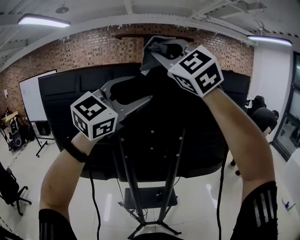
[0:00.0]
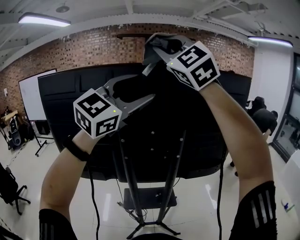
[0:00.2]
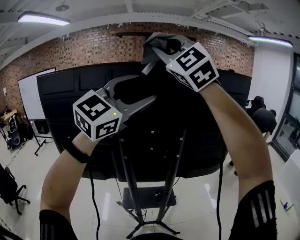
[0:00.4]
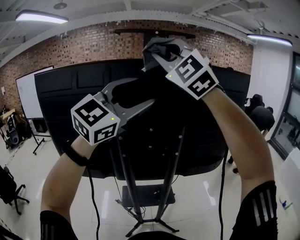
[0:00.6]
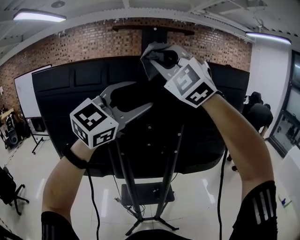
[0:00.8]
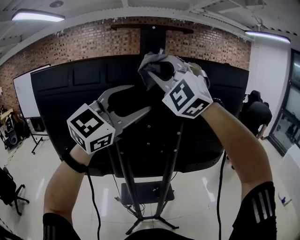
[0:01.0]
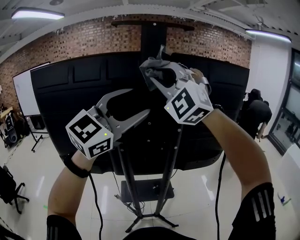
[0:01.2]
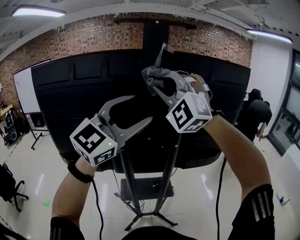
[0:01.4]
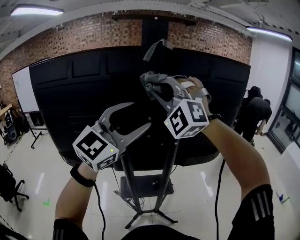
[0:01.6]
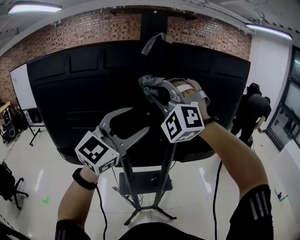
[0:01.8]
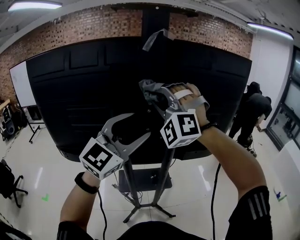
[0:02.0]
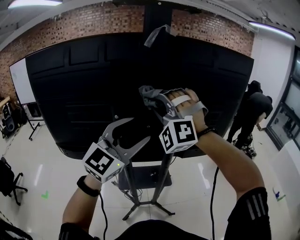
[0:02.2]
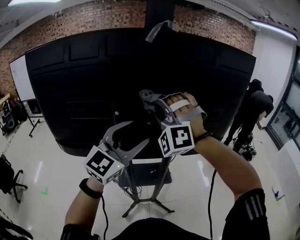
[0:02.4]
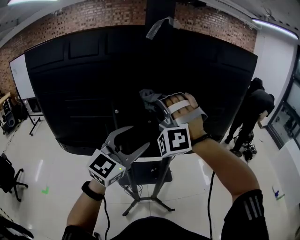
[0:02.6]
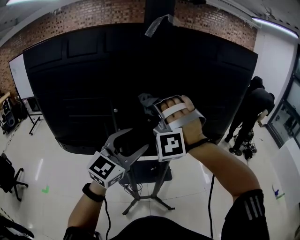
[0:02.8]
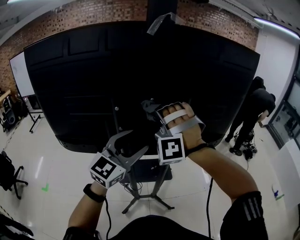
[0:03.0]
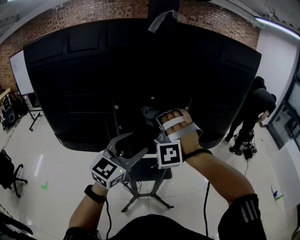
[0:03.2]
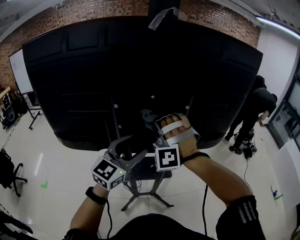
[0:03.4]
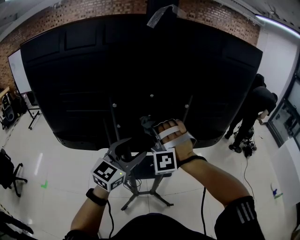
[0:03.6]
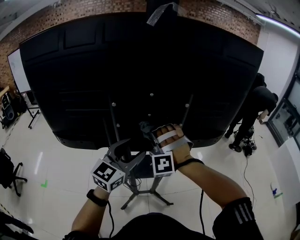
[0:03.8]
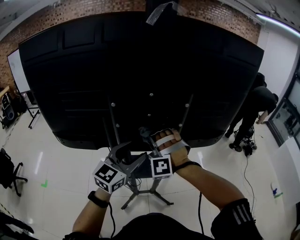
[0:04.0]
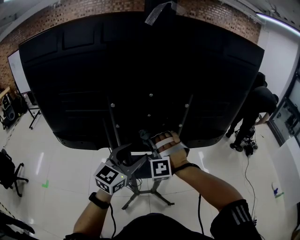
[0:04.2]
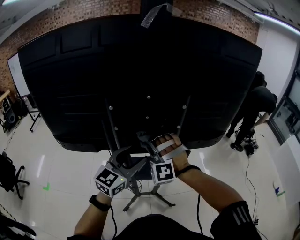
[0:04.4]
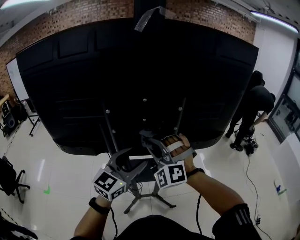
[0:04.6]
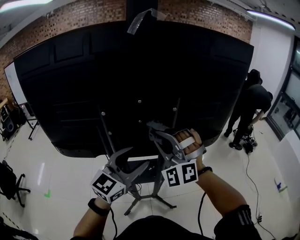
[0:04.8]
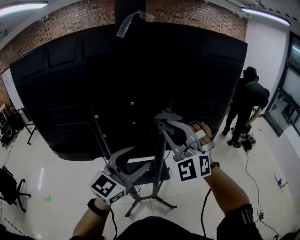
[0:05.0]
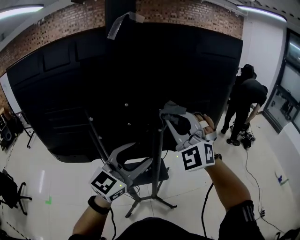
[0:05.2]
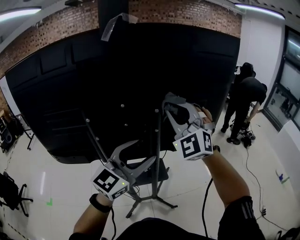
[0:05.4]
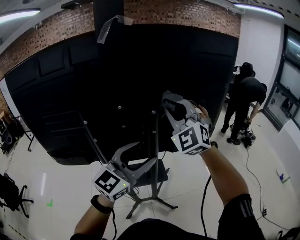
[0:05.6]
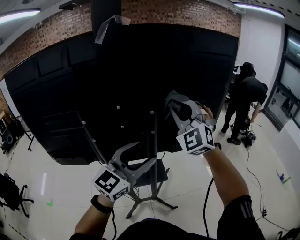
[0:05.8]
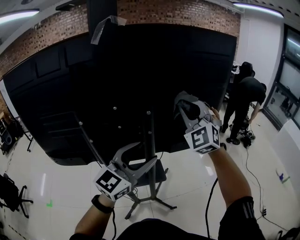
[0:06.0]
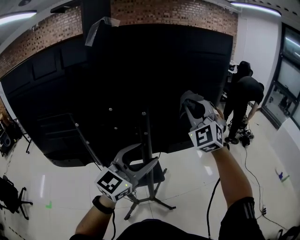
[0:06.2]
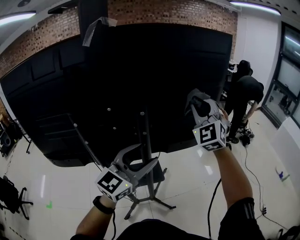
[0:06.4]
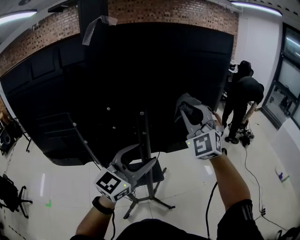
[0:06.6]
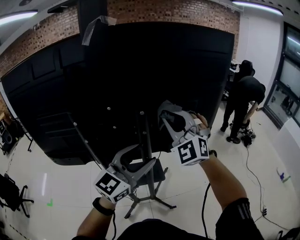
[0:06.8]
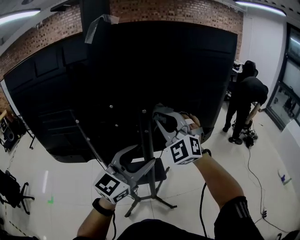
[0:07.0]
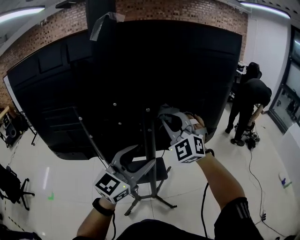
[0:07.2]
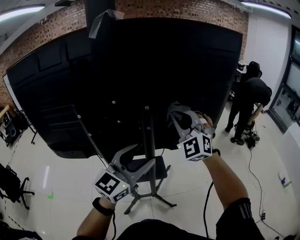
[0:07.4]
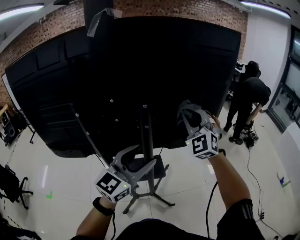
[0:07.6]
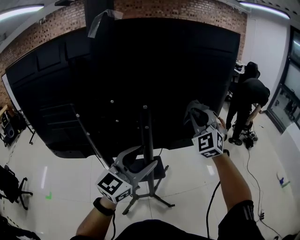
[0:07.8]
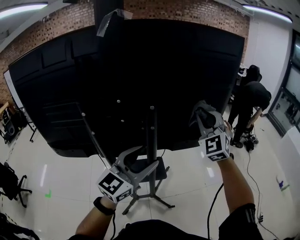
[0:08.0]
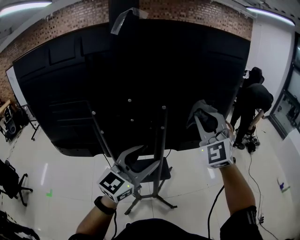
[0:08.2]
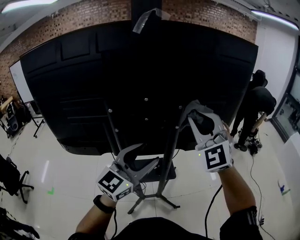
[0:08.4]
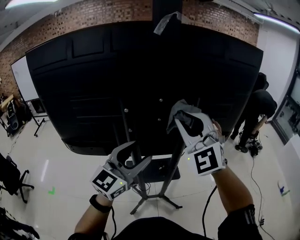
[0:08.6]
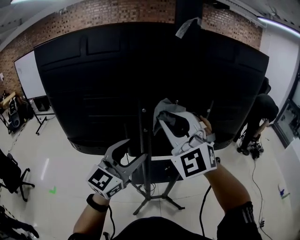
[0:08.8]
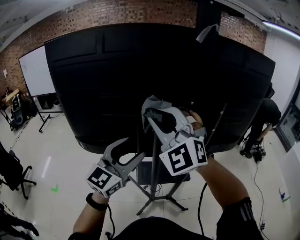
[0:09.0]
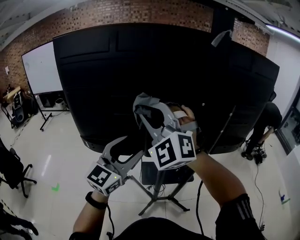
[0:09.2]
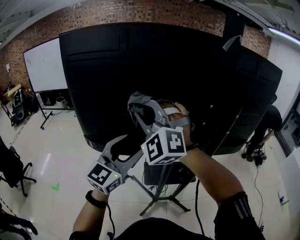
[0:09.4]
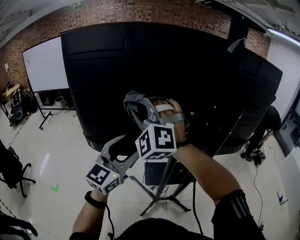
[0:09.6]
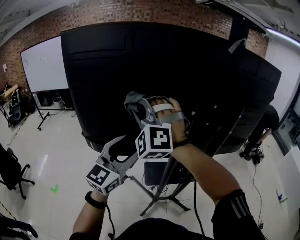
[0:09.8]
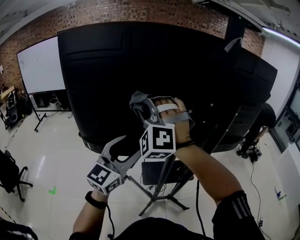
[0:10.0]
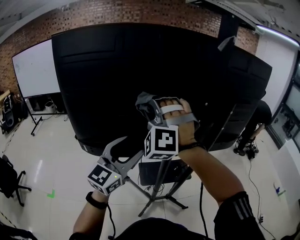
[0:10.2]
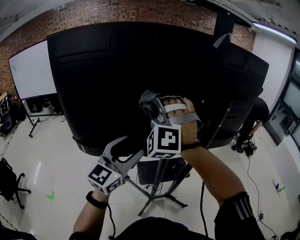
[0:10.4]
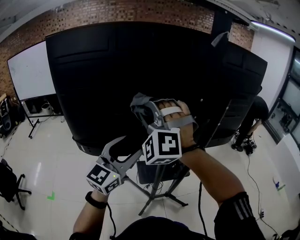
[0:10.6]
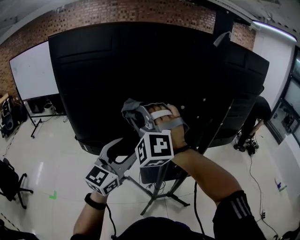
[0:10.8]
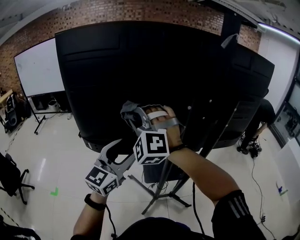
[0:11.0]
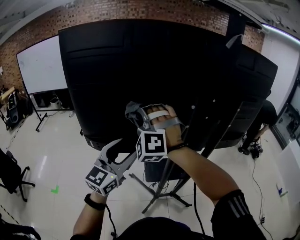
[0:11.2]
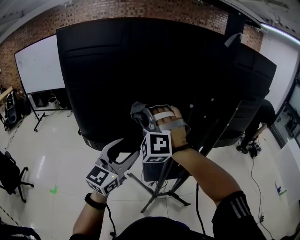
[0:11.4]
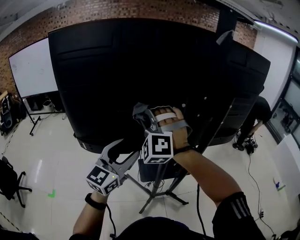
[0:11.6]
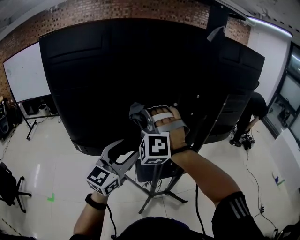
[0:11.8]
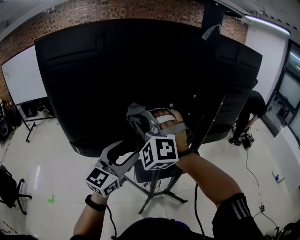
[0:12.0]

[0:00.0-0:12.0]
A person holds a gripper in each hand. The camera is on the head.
0:00.0 to 0:01.6: The left gripper heads downward, covering about 10 cm. Meanwhile the right gripper goes approximately 15 cm downward, and changes its angle by approximately 30 degrees.
0:01.6 to 0:03.0: The grippers both shift downward by roughly 15 cm. The right gripper turns by roughly 20 degrees.
0:03.0 to 0:04.4: The left gripper travels downward by some 10 cm. Meanwhile the right gripper travels downward by roughly 15 cm.
0:04.4 to 0:06.0: The right gripper travels to the right, upward and forward by roughly 30 cm, and changes its angle by some 40 degrees; the left gripper goes some 15 cm to the right and upward.
0:06.0 to 0:07.6: The right gripper goes left and right, roughly 15 cm each way, reversing 2 times.
0:07.6 to 0:09.0: The left gripper travels to the left by approximately 30 cm, while the right gripper moves to the left and backward, approximately 40 cm, and swivels roughly 20 degrees.
0:09.0 to 0:10.4: The left gripper moves to the left, roughly 10 cm. Meanwhile the right gripper goes roughly 10 cm to the left and forward, and swivels some 40 degrees.
0:10.4 to 0:12.0: The right gripper moves some 10 cm to the left and comes back.

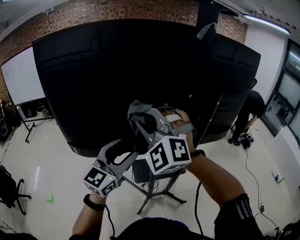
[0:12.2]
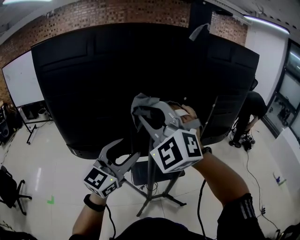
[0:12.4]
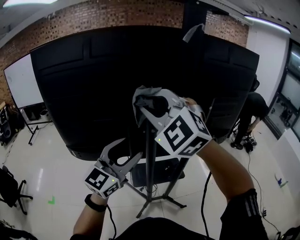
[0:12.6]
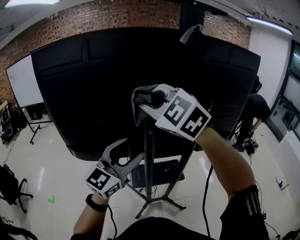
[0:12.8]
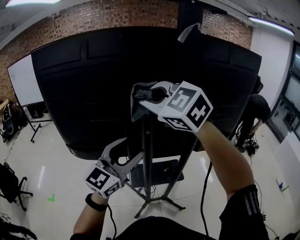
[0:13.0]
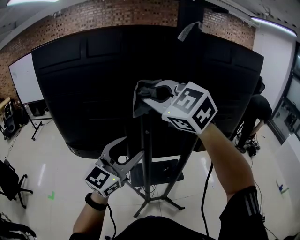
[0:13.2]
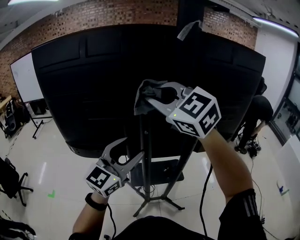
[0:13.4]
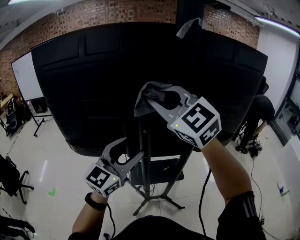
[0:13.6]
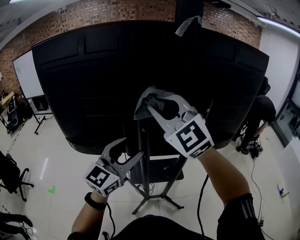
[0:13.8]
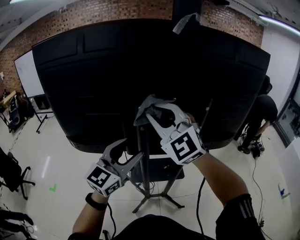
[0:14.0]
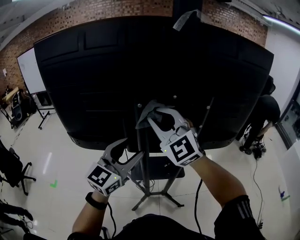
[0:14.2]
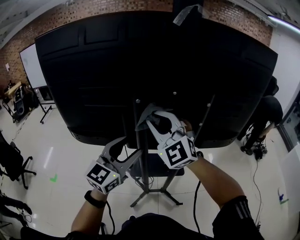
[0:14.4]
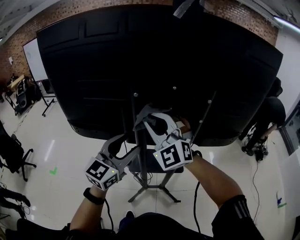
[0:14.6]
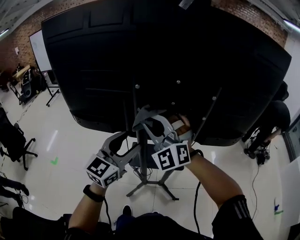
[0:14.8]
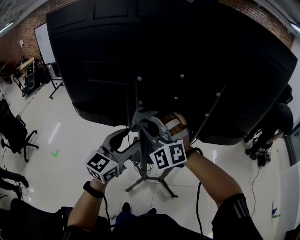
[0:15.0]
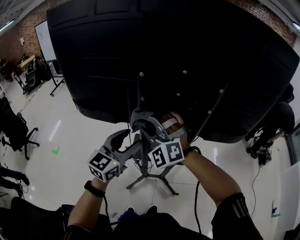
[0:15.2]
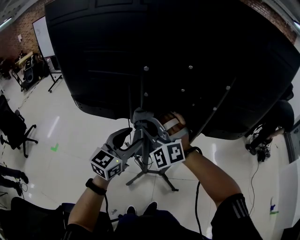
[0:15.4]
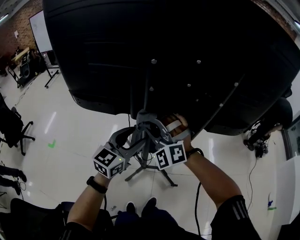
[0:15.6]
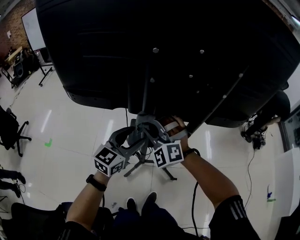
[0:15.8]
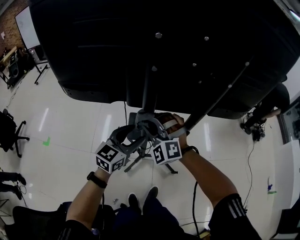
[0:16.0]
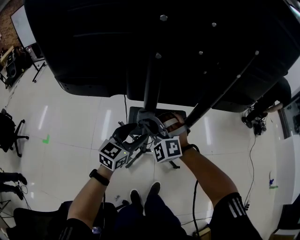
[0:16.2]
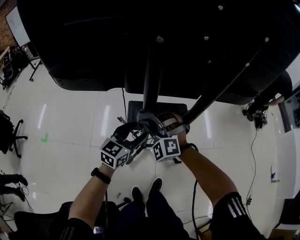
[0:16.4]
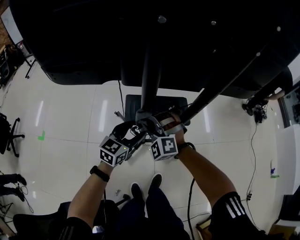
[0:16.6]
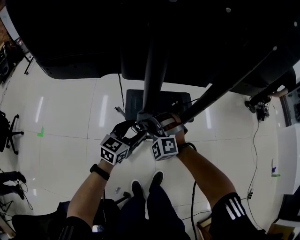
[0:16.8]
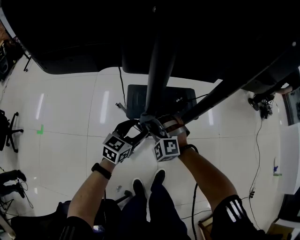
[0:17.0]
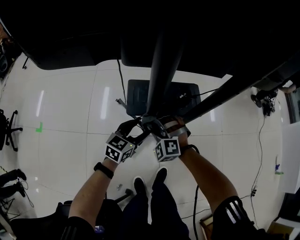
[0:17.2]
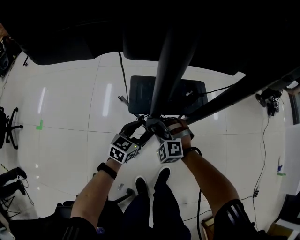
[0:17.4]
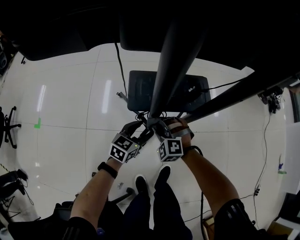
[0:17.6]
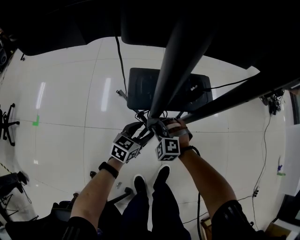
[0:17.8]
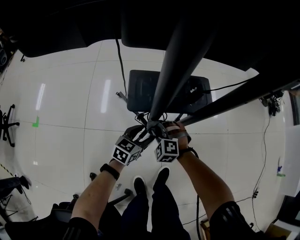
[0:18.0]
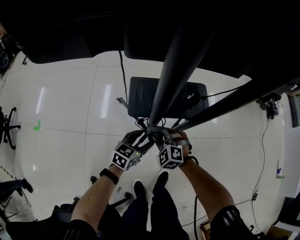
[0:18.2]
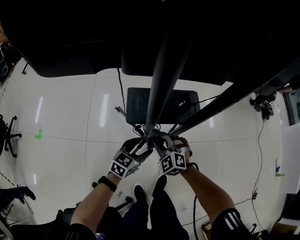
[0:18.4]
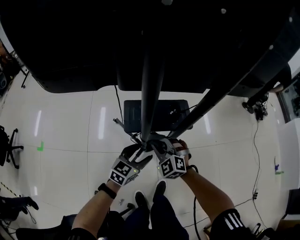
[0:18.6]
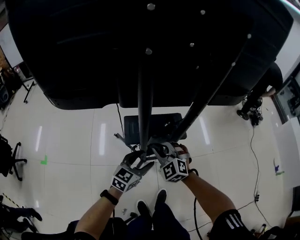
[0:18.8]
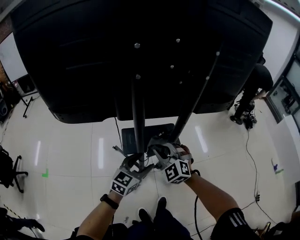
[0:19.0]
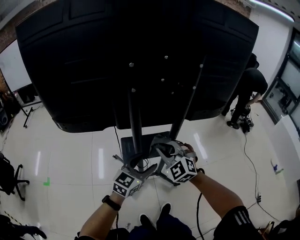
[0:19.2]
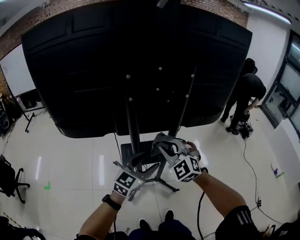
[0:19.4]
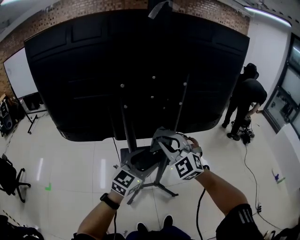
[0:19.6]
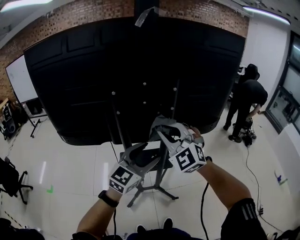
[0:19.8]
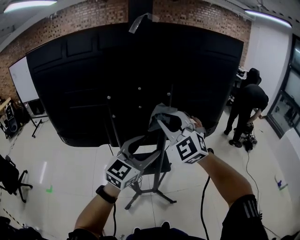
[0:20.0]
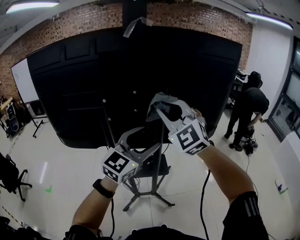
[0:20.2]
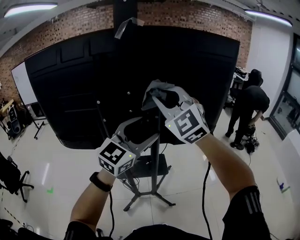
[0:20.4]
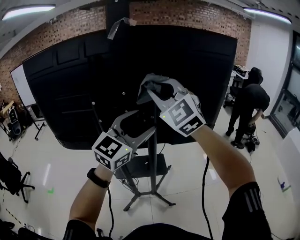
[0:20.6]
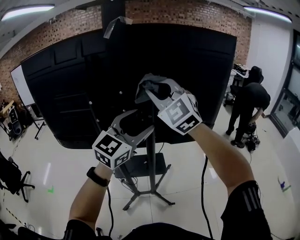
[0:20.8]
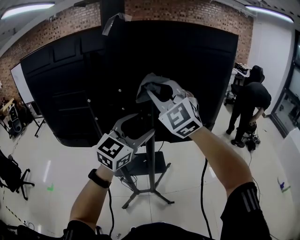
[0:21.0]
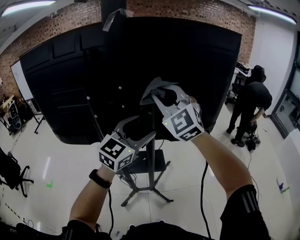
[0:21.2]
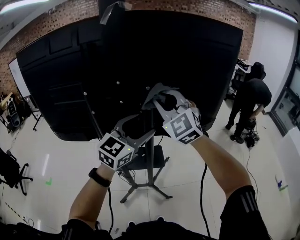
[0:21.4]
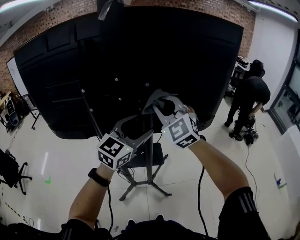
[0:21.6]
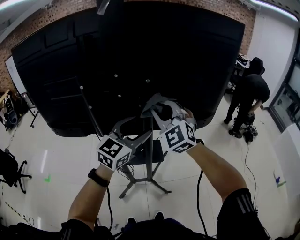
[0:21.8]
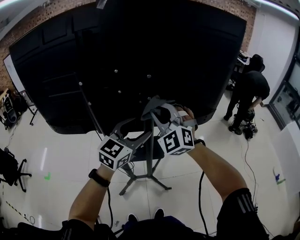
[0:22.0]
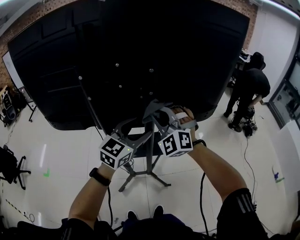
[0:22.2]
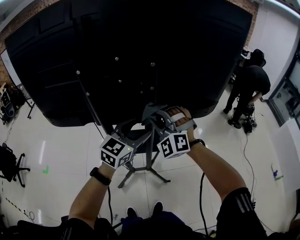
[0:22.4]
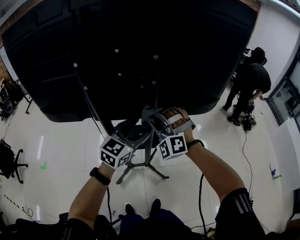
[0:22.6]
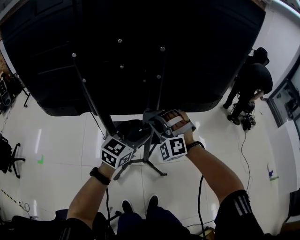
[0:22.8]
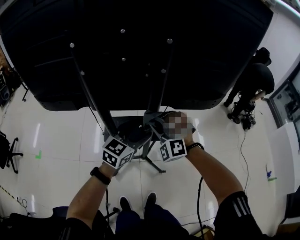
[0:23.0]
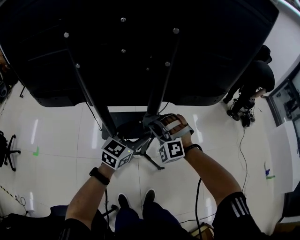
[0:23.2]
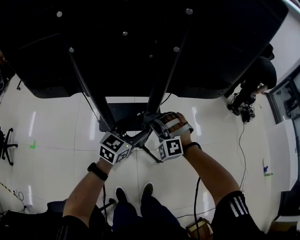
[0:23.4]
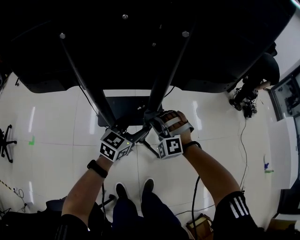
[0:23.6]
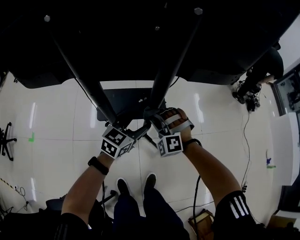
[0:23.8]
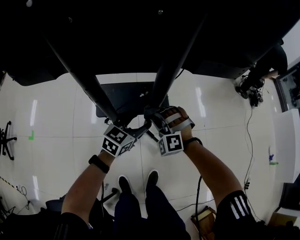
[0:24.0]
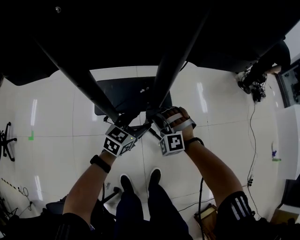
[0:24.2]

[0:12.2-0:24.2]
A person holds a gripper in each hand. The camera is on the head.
0:12.2 to 0:13.8: The left gripper heads to the right, covering some 10 cm; the right gripper travels to the right and upward by some 15 cm, and turns by roughly 30 degrees.
0:13.8 to 0:15.2: The left gripper heads downward, covering roughly 15 cm, while the right gripper shifts some 20 cm downward, and changes its angle by some 30 degrees.
0:15.2 to 0:16.6: Both grippers travel together downward, roughly 30 cm. The left gripper rotates roughly 20 degrees, while the right gripper turns by approximately 30 degrees.
0:16.6 to 0:18.2: The grippers both shift downward by about 25 cm. The right gripper turns by about 30 degrees.
0:18.2 to 0:19.8: The two grippers go about 60 cm upward. The right gripper points its fingers roughly 40 degrees further upward. Meanwhile the left gripper rotates approximately 40 degrees.
0:19.8 to 0:21.2: Both grippers travel together upward, forward and to the right, roughly 15 cm.
0:21.2 to 0:22.6: The right gripper travels downward by about 25 cm, and rotates roughly 30 degrees. The left gripper shifts some 20 cm downward.
0:22.6 to 0:24.2: Both grippers move downward, about 40 cm. The right gripper turns by about 20 degrees. Meanwhile the left gripper changes its angle by some 20 degrees.
